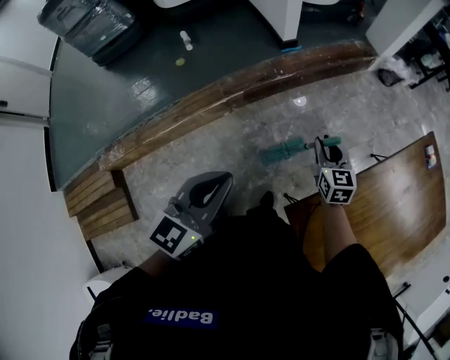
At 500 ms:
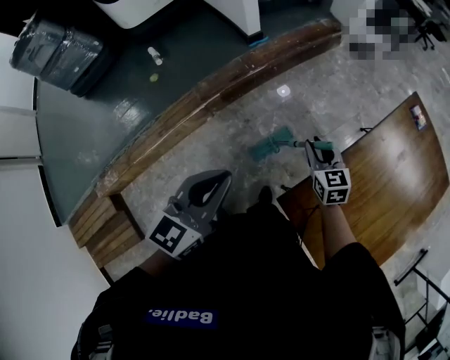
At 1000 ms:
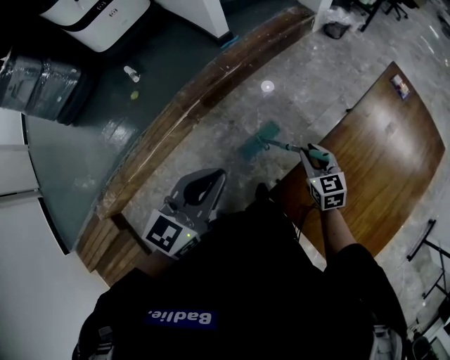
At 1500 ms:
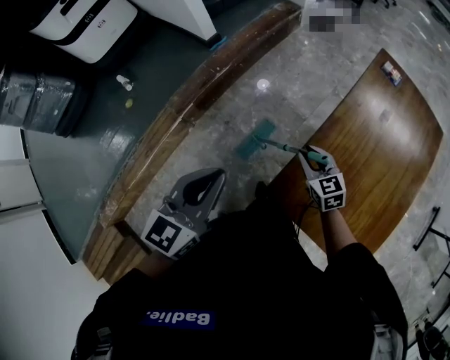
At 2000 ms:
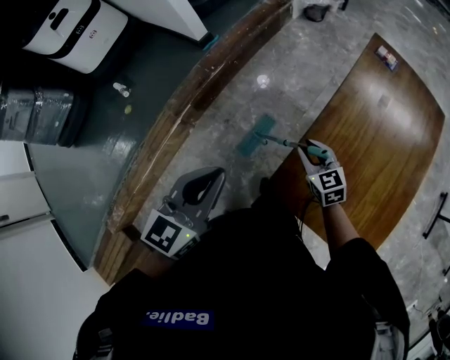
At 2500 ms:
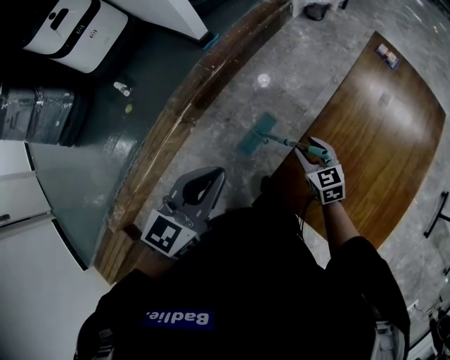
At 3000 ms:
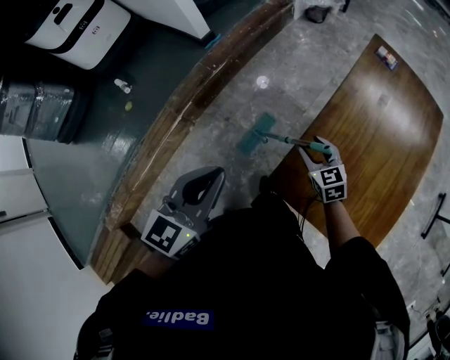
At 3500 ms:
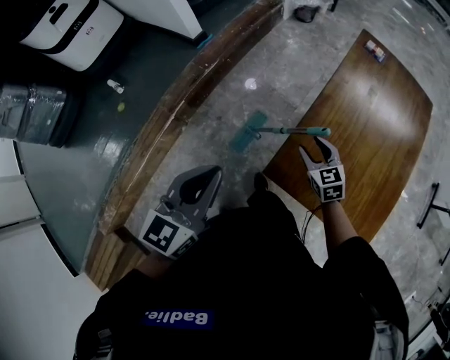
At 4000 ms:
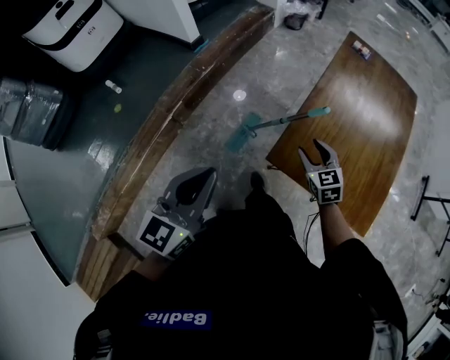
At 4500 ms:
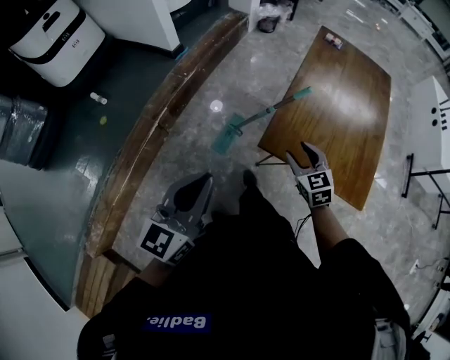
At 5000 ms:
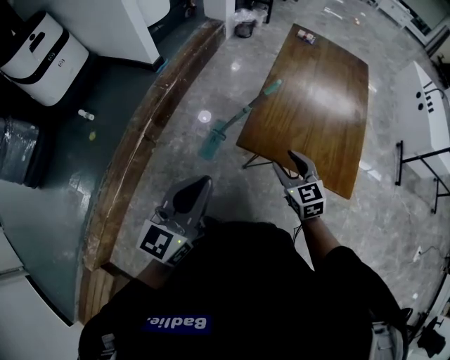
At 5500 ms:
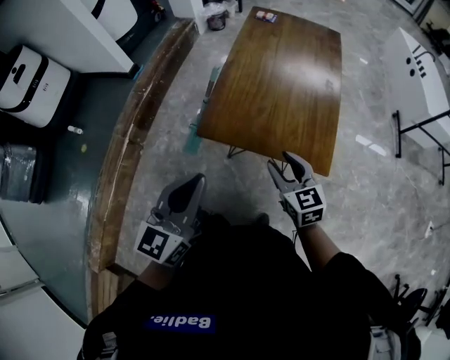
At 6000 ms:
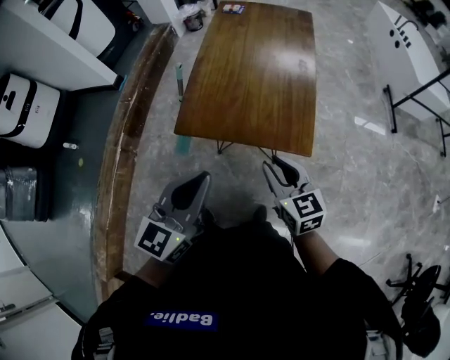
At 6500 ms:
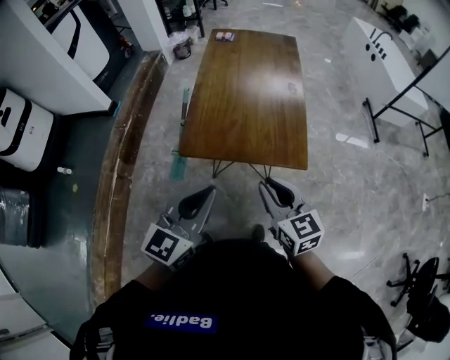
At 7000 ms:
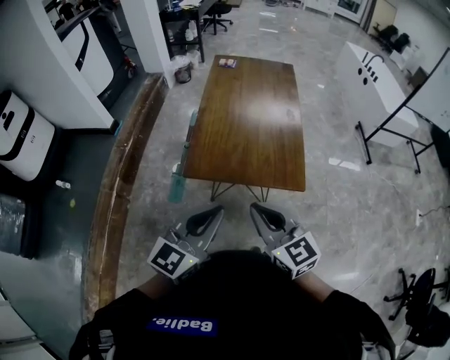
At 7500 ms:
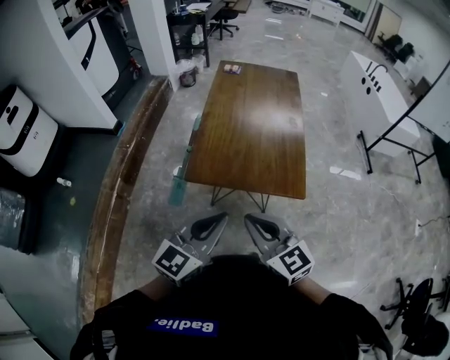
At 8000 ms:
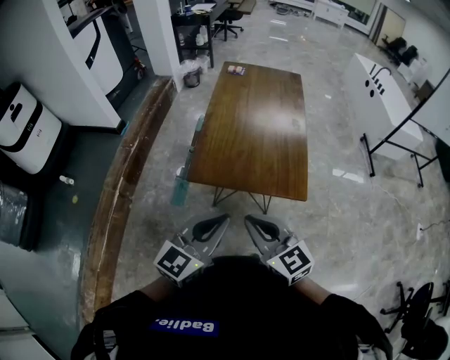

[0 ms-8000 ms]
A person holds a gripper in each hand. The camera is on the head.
0 ms to 2000 ms: The left gripper shifts about 15 cm to the right, and swivels roughly 30 degrees, while the right gripper heads to the right and backward, covering about 20 cm.
2000 ms to 4000 ms: The right gripper travels backward by roughly 15 cm, and opens its fingers. The left gripper travels backward and to the left by about 15 cm.
4000 ms to 6000 ms: The left gripper moves to the right and backward, about 35 cm, and swivels approximately 20 degrees; the right gripper goes some 40 cm backward, to the right and upward, changes its angle by some 30 degrees, and closes.
6000 ms to 8000 ms: The right gripper heads to the left, upward and backward, covering some 20 cm, and closes its fingers, while the left gripper shifts by about 5 cm.

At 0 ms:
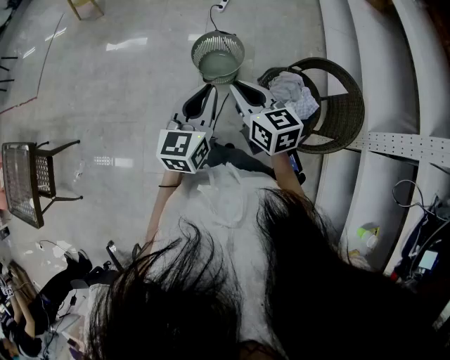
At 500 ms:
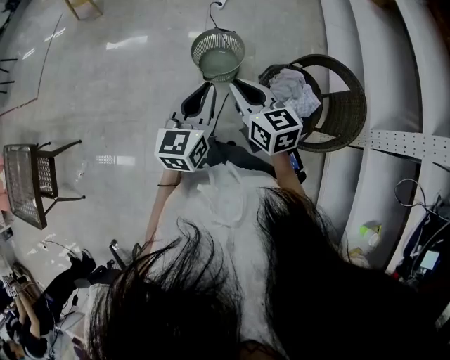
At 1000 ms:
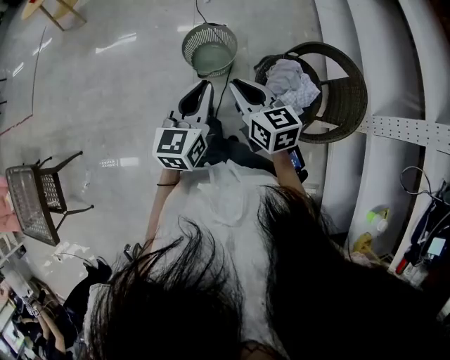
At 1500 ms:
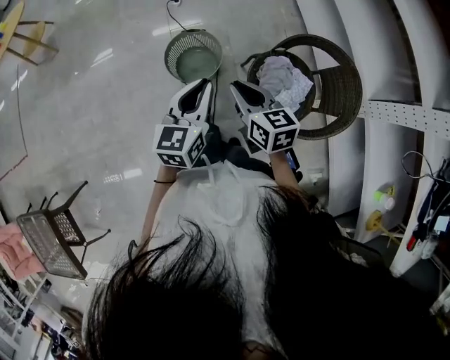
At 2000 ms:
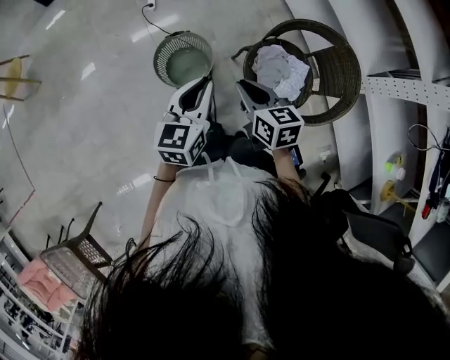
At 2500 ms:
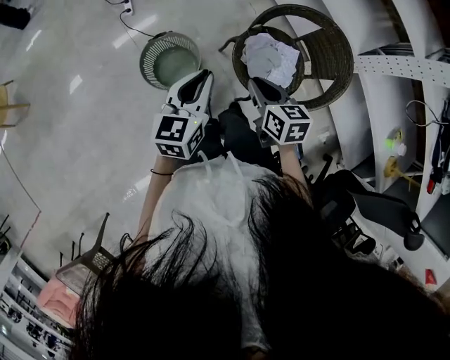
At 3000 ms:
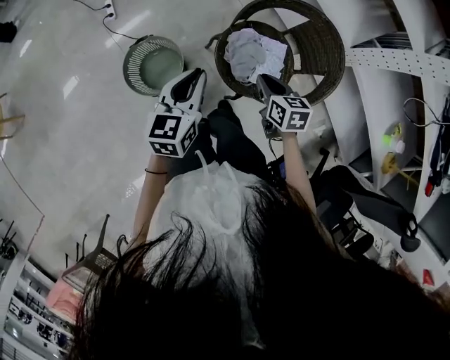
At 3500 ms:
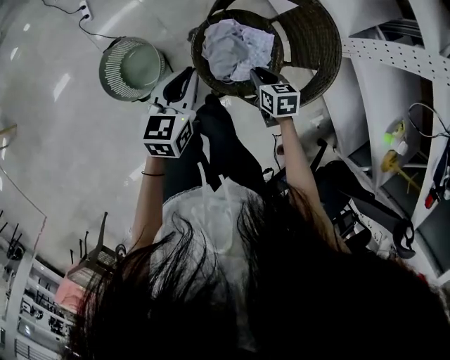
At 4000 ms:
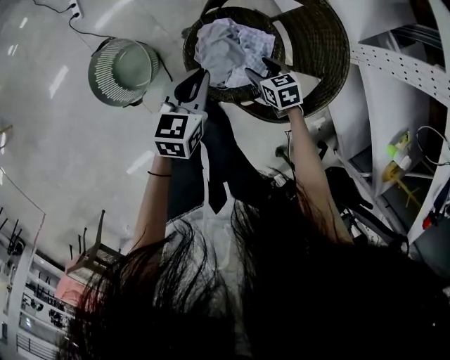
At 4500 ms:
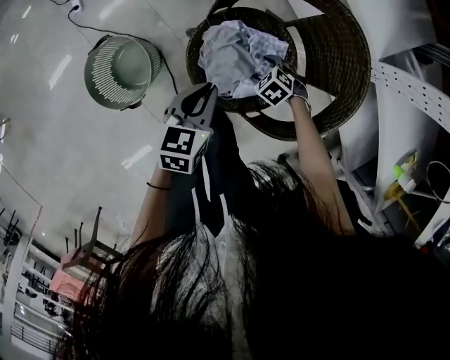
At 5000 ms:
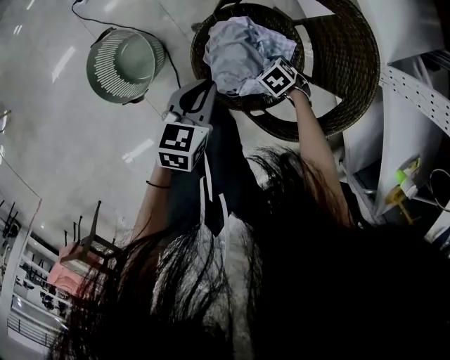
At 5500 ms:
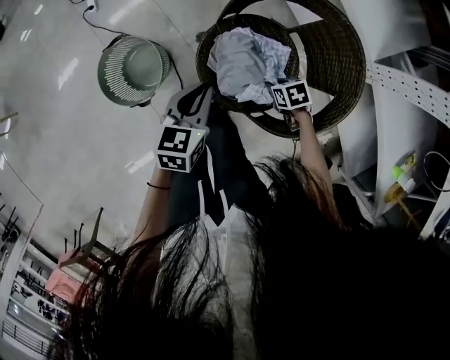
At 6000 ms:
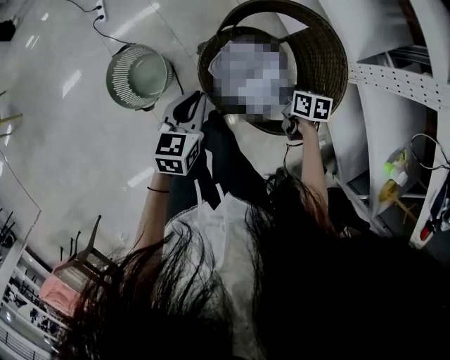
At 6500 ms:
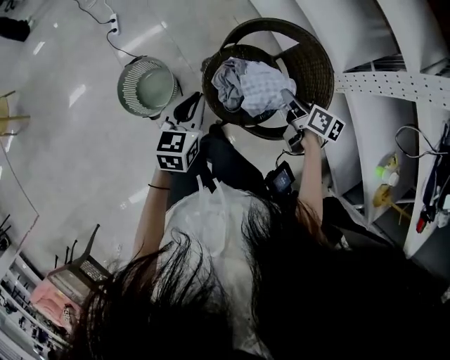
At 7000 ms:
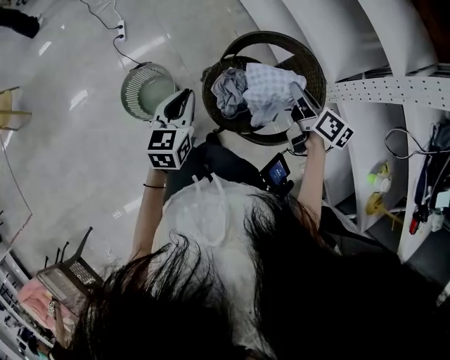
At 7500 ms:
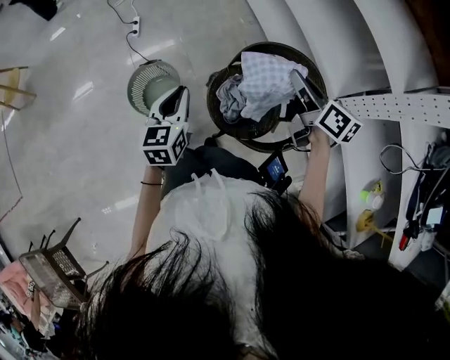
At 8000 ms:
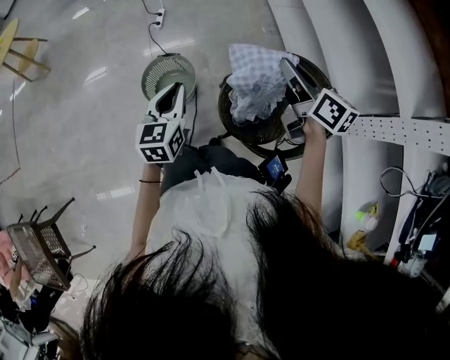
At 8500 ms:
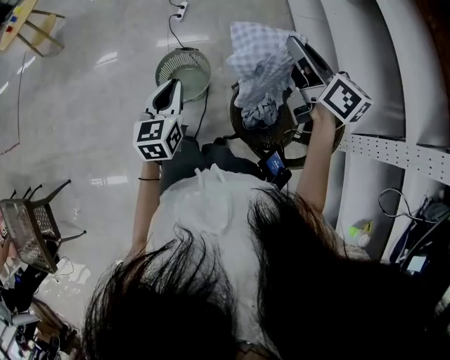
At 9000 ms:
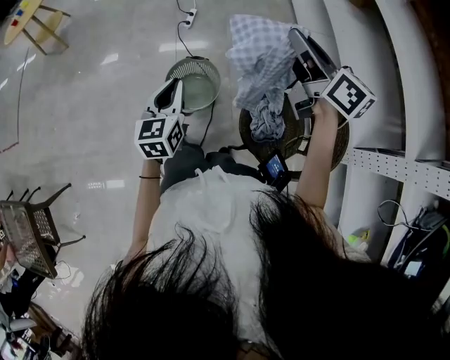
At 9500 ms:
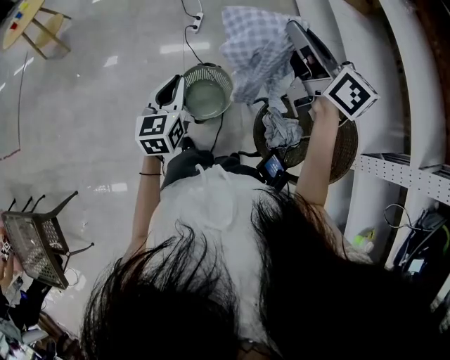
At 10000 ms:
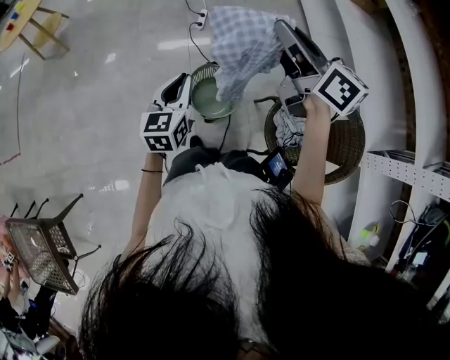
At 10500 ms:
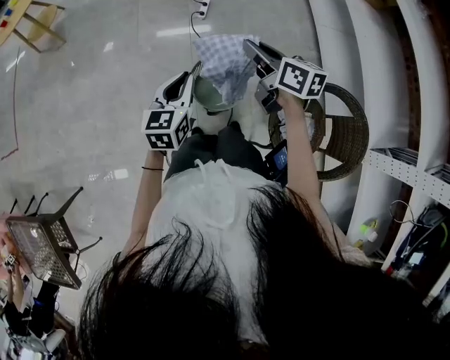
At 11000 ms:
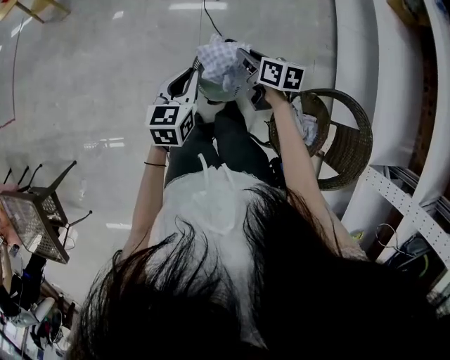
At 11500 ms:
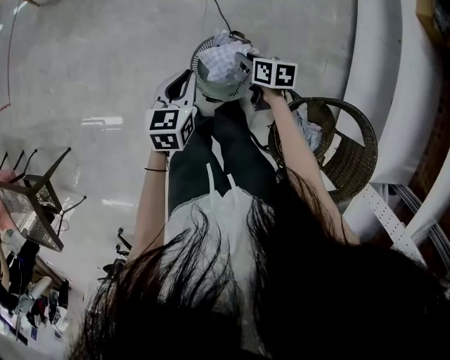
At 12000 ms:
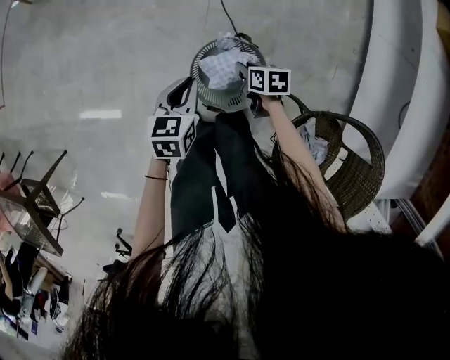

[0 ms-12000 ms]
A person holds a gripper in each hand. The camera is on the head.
0 ms to 2000 ms: The right gripper moves approximately 15 cm, and rotates about 40 degrees. The left gripper changes place by approximately 20 cm, and rotates roughly 30 degrees.
2000 ms to 4000 ms: The left gripper goes approximately 35 cm to the right, downward and forward, and swivels roughly 20 degrees; the right gripper travels to the right and downward by some 40 cm, changes its angle by about 30 degrees, and opens up.
4000 ms to 6000 ms: The right gripper travels downward and back again, approximately 15 cm each way, swivels some 30 degrees, and closes its fingers. Meanwhile the left gripper travels downward and back again, about 5 cm each way.
6000 ms to 8000 ms: The left gripper travels upward and to the left by about 20 cm, and rotates about 30 degrees. Meanwhile the right gripper moves upward, some 35 cm, and angles its fingers upward, by about 40 degrees.
8000 ms to 10000 ms: The two grippers go some 35 cm to the left and forward.
10000 ms to 12000 ms: The right gripper is displaced downward by some 60 cm, and angles its fingers downward, by about 50 degrees. The left gripper shifts some 25 cm downward, and swivels some 30 degrees.

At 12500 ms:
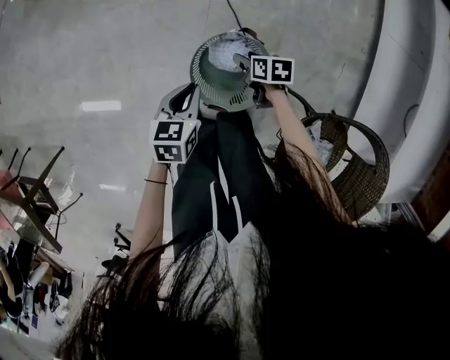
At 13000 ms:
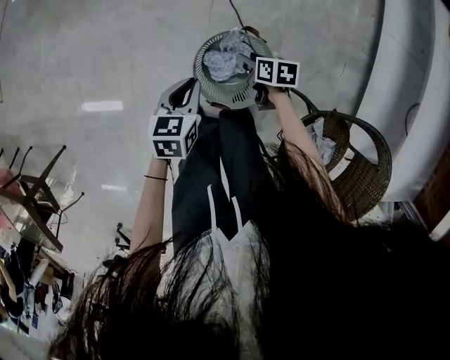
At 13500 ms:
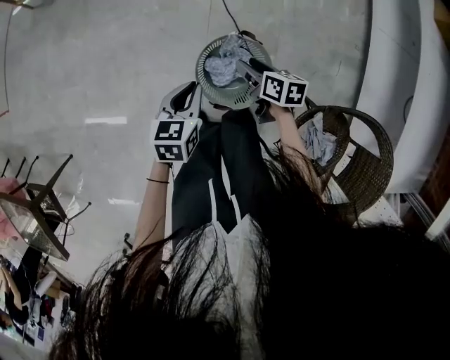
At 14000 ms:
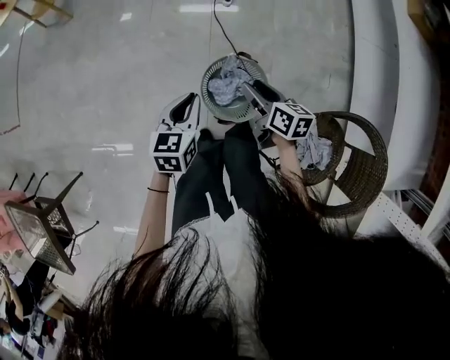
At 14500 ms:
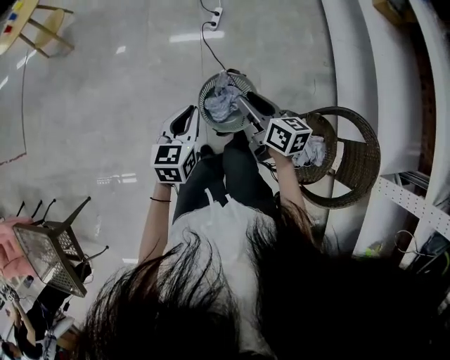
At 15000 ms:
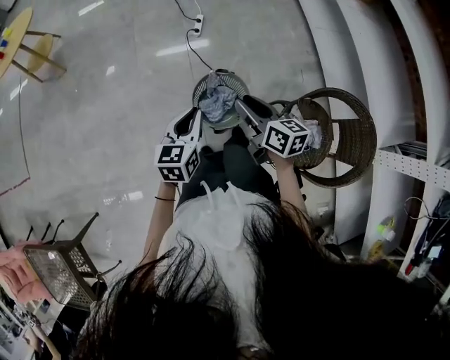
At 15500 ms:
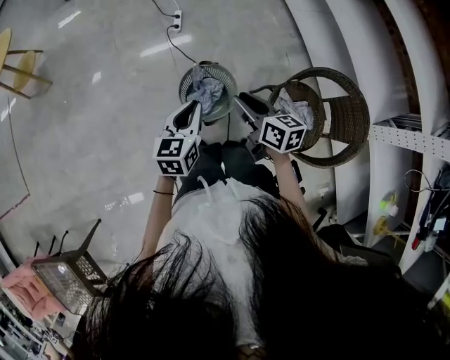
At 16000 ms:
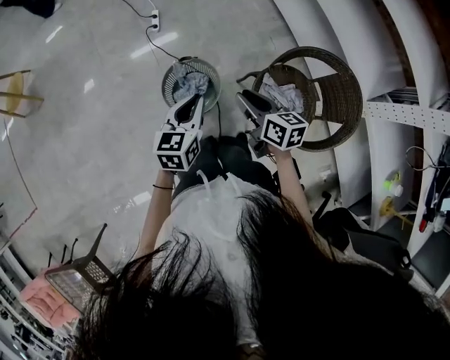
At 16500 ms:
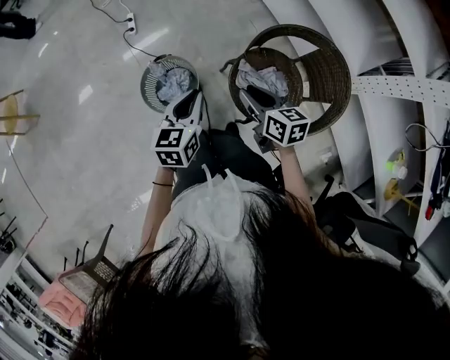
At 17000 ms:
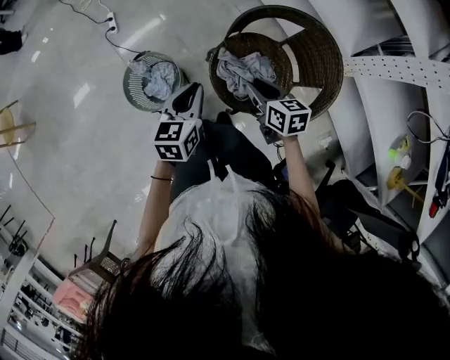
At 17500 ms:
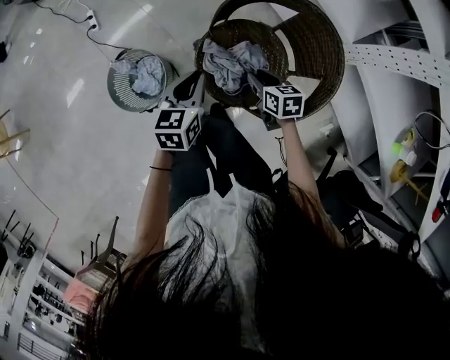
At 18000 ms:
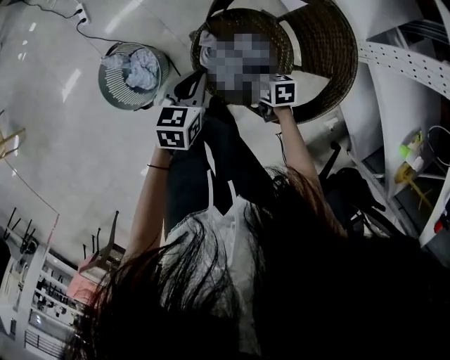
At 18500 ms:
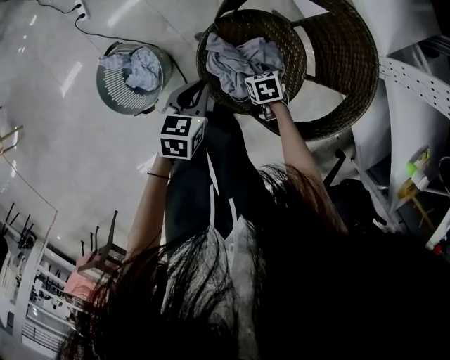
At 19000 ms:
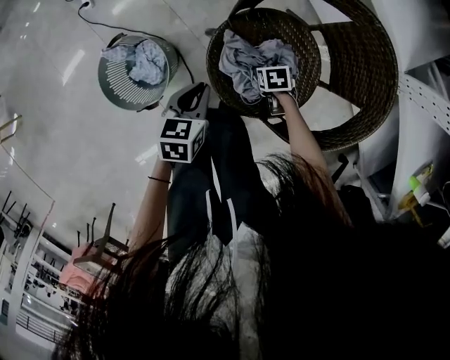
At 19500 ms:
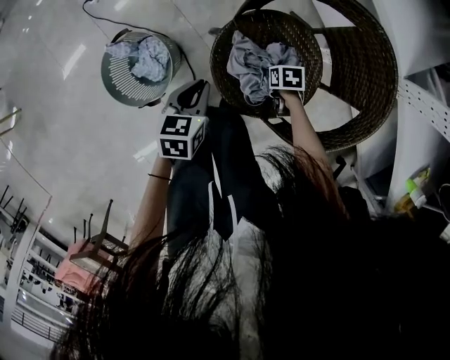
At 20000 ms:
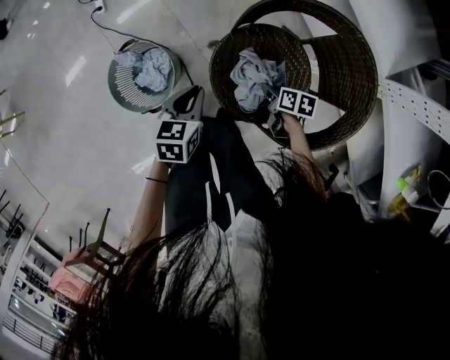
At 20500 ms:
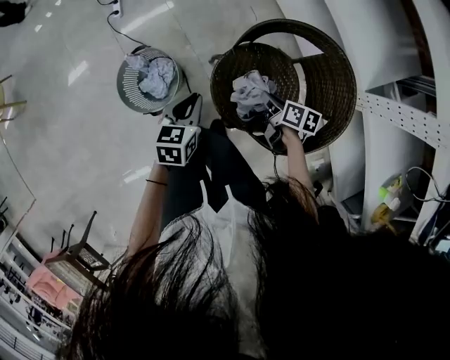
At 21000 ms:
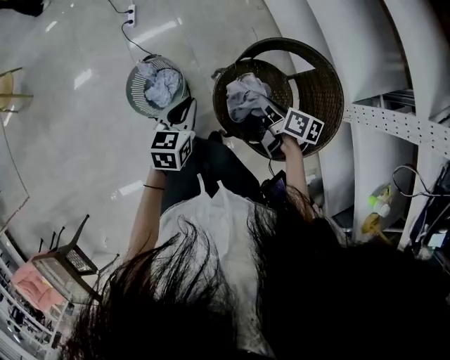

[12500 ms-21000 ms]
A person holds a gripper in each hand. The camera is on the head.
12500 ms to 14500 ms: The left gripper moves upward, roughly 25 cm, and swivels about 20 degrees; the right gripper heads upward, covering approximately 35 cm, and tilts its fingers approximately 30 degrees upward.
14500 ms to 16500 ms: The left gripper ends up about 30 cm from where it was, and swivels about 30 degrees. The right gripper shifts by roughly 35 cm, and rotates approximately 20 degrees.
16500 ms to 19000 ms: The right gripper moves downward, about 40 cm, tips its fingers downward by about 50 degrees, and opens up. The left gripper shifts about 25 cm downward, and turns by roughly 30 degrees.
19000 ms to 21000 ms: The right gripper heads upward, covering approximately 35 cm, angles its fingers upward, by about 50 degrees, and closes up. The left gripper is displaced upward by about 20 cm, and swivels roughly 20 degrees.
